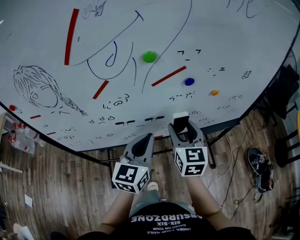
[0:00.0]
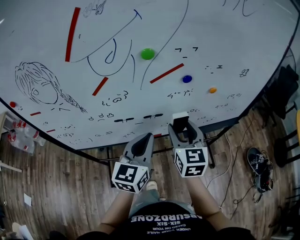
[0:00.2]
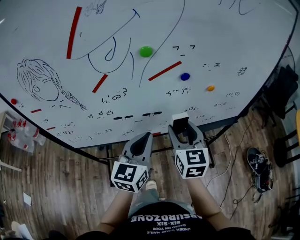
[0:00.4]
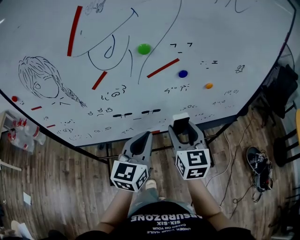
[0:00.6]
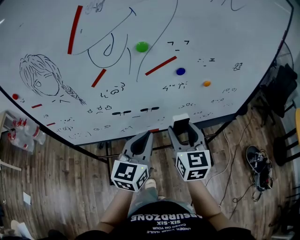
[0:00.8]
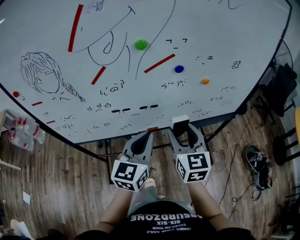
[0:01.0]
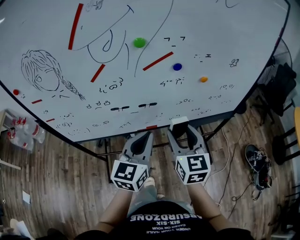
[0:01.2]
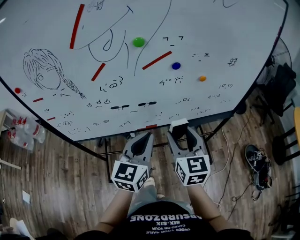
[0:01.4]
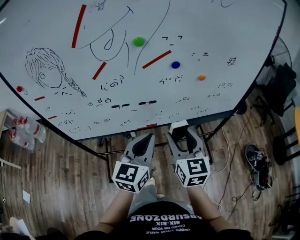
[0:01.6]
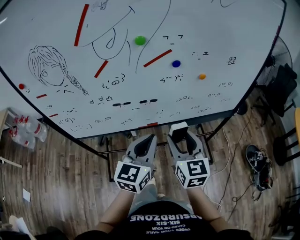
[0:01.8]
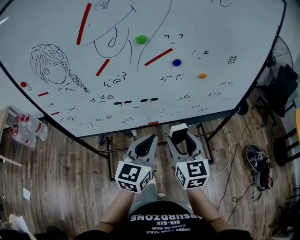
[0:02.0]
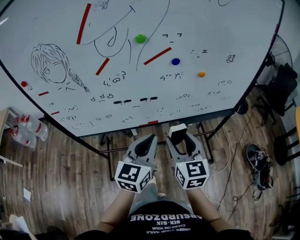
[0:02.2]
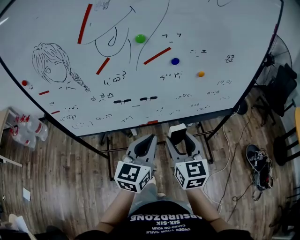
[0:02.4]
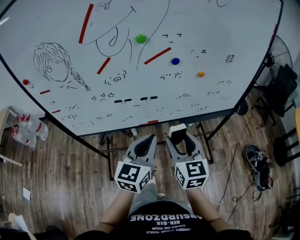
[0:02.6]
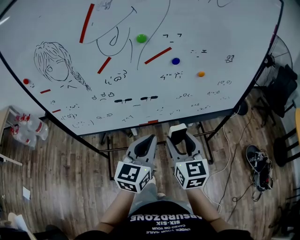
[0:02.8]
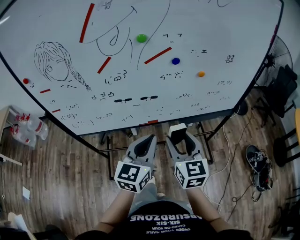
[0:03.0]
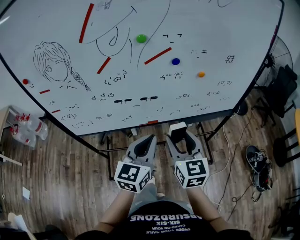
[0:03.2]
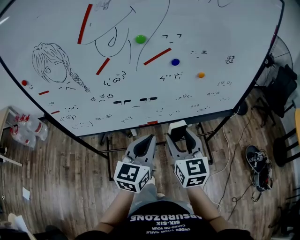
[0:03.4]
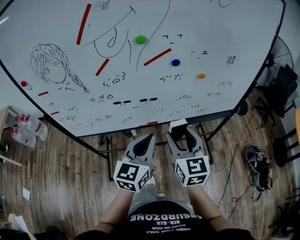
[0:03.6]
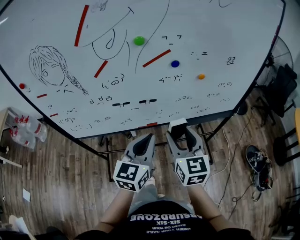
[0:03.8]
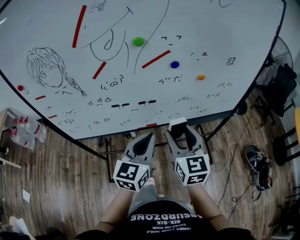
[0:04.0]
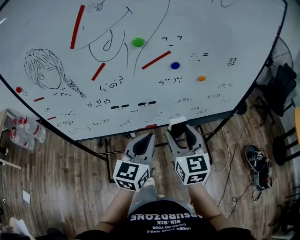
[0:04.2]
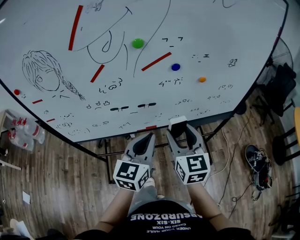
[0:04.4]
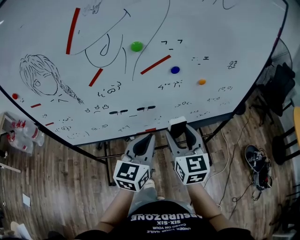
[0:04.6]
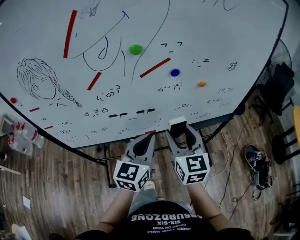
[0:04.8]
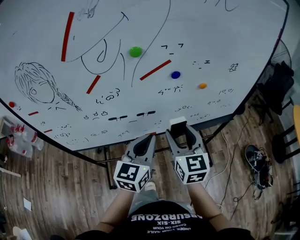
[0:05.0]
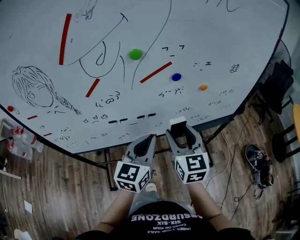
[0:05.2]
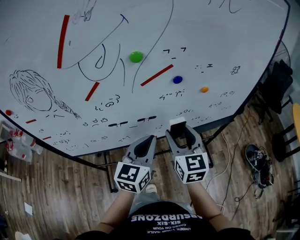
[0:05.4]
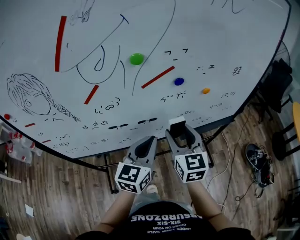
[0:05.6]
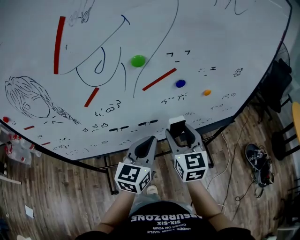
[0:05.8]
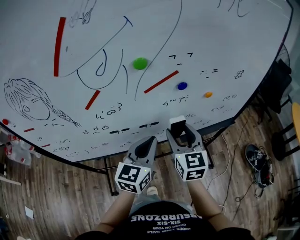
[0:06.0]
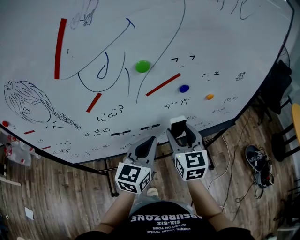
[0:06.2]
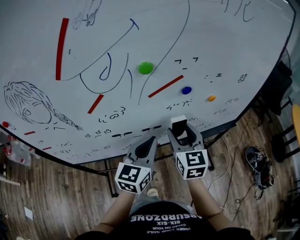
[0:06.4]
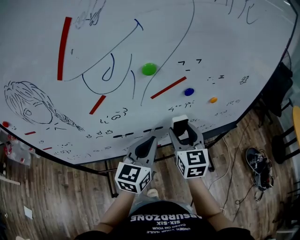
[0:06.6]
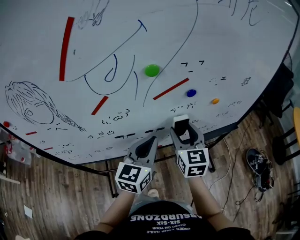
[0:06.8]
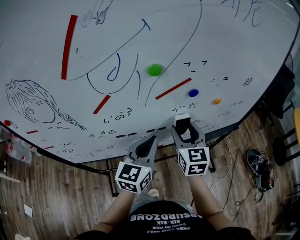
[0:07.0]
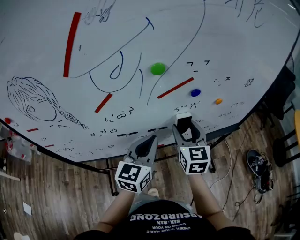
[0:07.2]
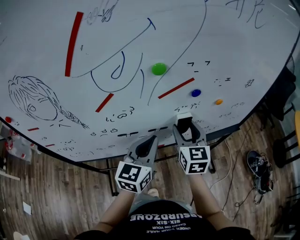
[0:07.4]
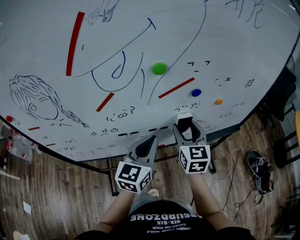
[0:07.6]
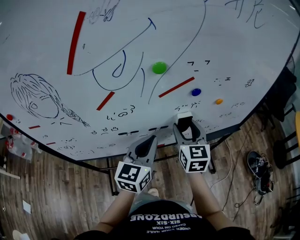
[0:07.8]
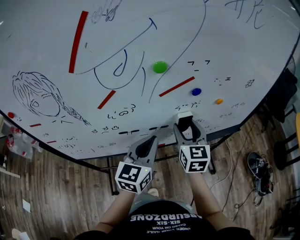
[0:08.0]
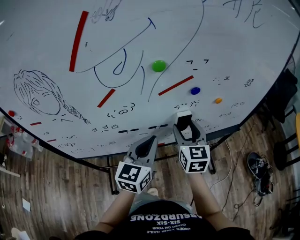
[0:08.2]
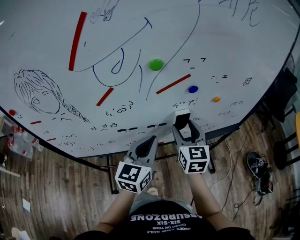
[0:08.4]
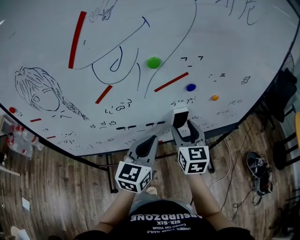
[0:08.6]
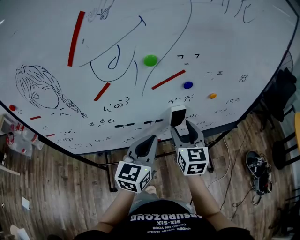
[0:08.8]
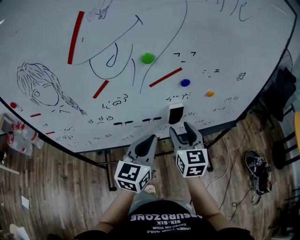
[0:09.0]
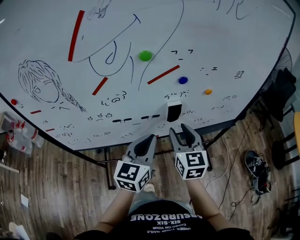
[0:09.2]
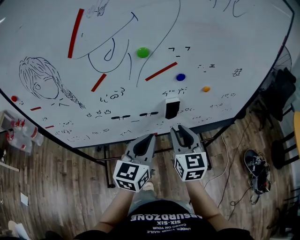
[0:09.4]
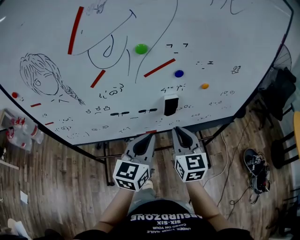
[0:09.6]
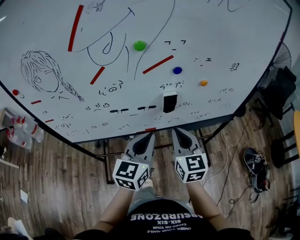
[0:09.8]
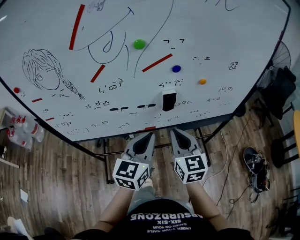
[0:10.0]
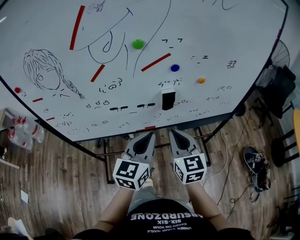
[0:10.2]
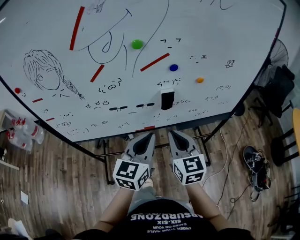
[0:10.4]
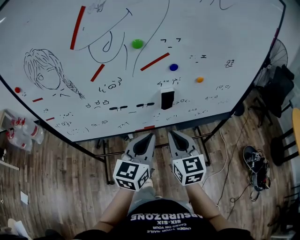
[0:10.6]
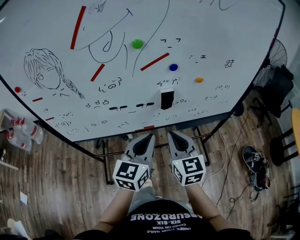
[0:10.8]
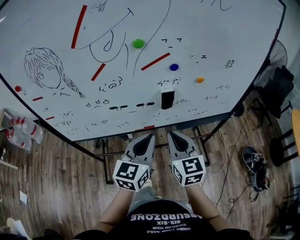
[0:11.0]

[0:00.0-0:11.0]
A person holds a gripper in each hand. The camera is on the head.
0:00.0 to 0:01.6: Both grippers move backward, approximately 10 cm.
0:01.6 to 0:03.2: The grippers move only a little.
0:03.2 to 0:04.8: The two grippers go some 10 cm forward.
0:04.8 to 0:06.2: Both grippers travel together forward, roughly 5 cm.
0:06.2 to 0:07.8: The grippers make only small movements.
0:07.8 to 0:09.4: The left gripper shifts about 5 cm backward. Meanwhile the right gripper heads backward, covering approximately 10 cm, and closes.
0:09.4 to 0:11.0: The left gripper shifts by roughly 5 cm, while the right gripper heads backward, covering approximately 5 cm, and closes.

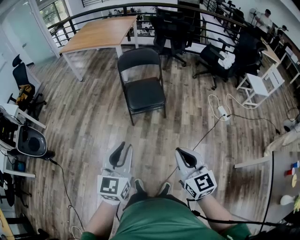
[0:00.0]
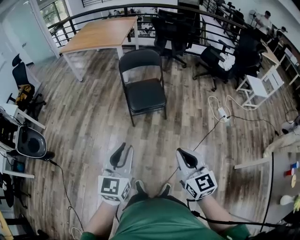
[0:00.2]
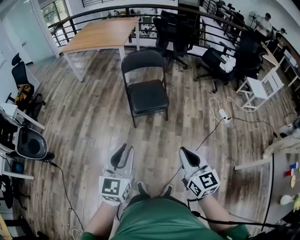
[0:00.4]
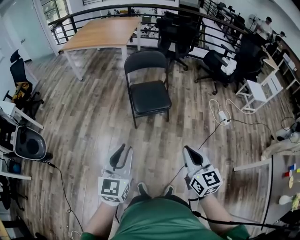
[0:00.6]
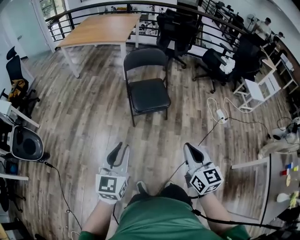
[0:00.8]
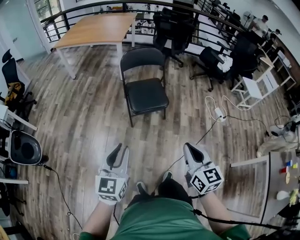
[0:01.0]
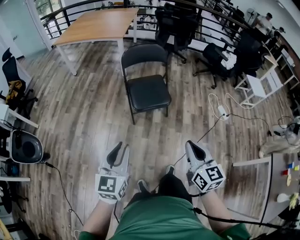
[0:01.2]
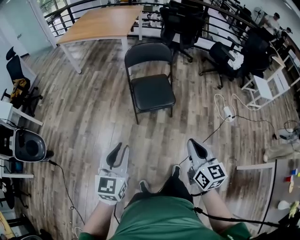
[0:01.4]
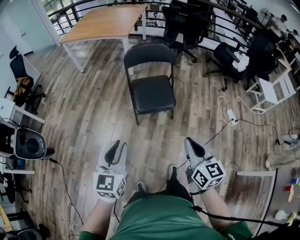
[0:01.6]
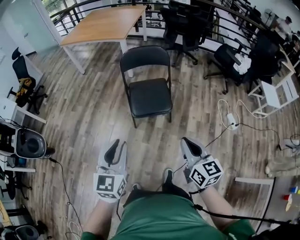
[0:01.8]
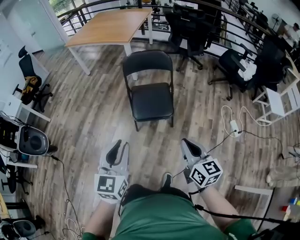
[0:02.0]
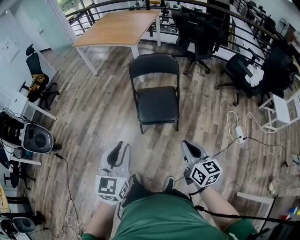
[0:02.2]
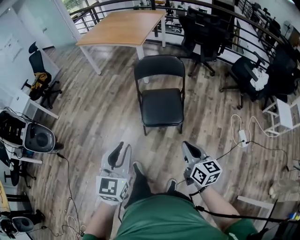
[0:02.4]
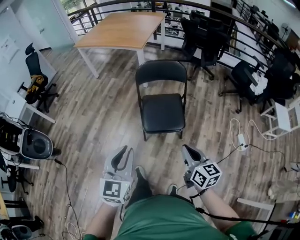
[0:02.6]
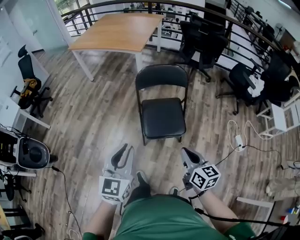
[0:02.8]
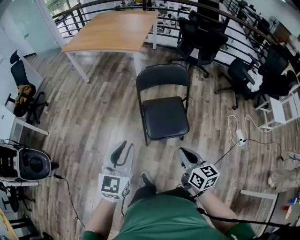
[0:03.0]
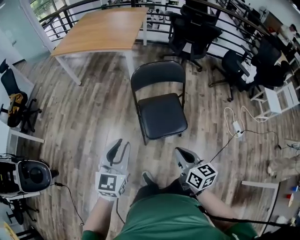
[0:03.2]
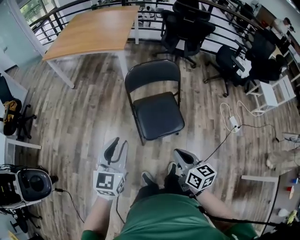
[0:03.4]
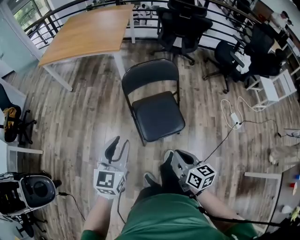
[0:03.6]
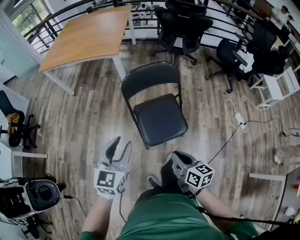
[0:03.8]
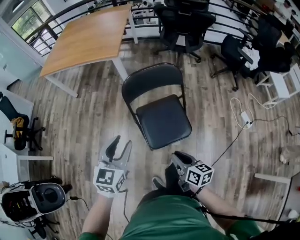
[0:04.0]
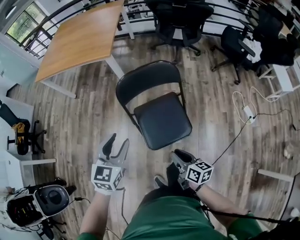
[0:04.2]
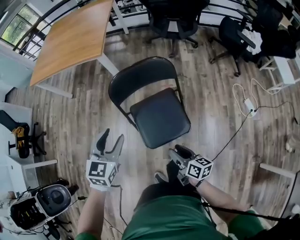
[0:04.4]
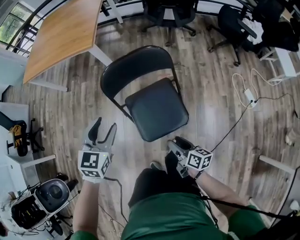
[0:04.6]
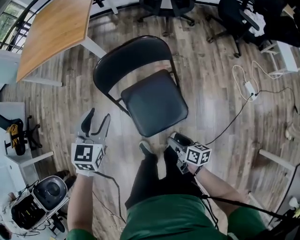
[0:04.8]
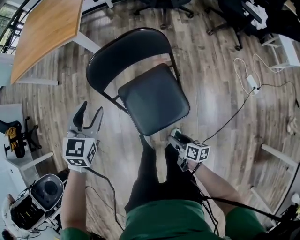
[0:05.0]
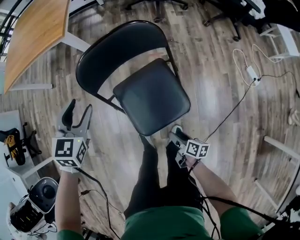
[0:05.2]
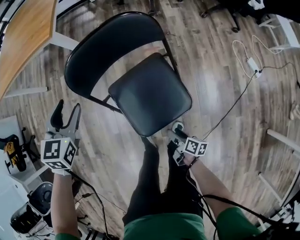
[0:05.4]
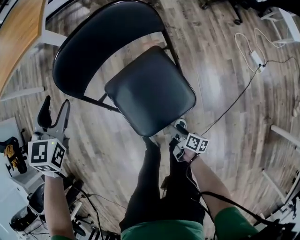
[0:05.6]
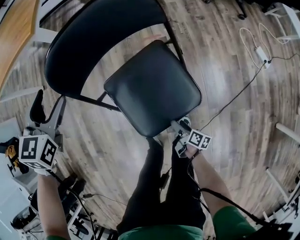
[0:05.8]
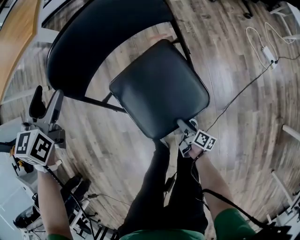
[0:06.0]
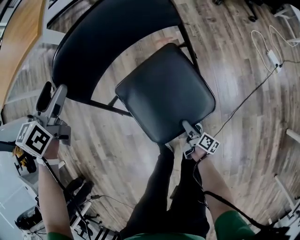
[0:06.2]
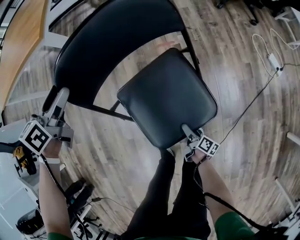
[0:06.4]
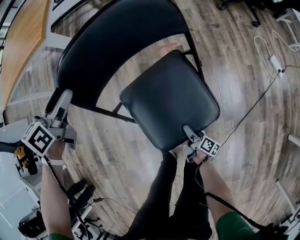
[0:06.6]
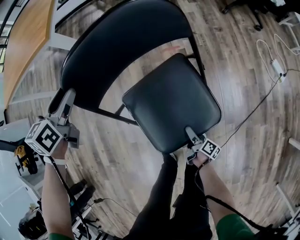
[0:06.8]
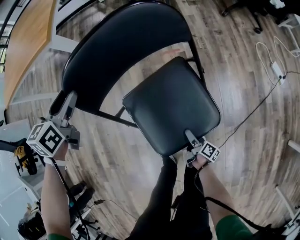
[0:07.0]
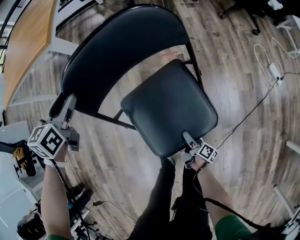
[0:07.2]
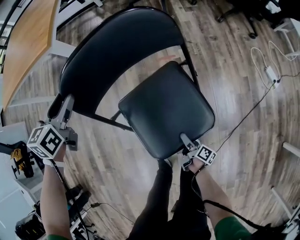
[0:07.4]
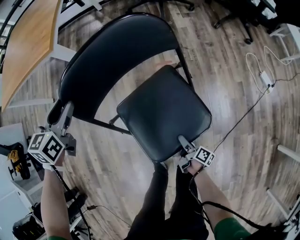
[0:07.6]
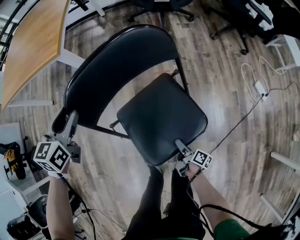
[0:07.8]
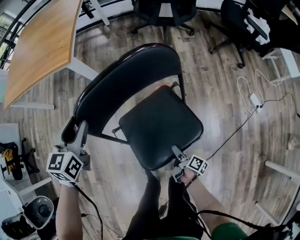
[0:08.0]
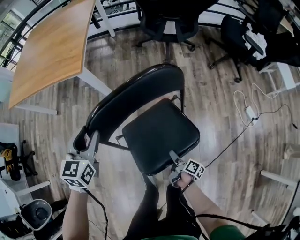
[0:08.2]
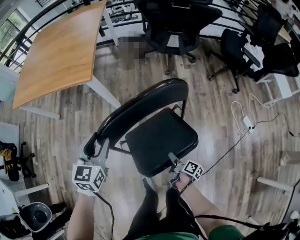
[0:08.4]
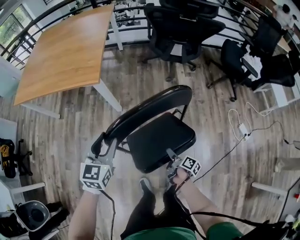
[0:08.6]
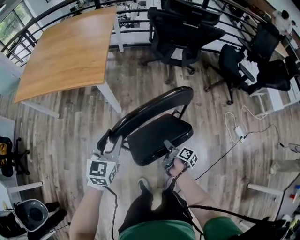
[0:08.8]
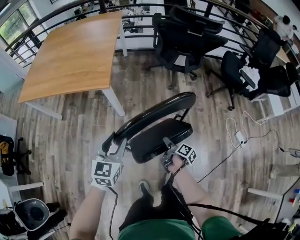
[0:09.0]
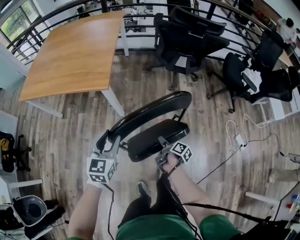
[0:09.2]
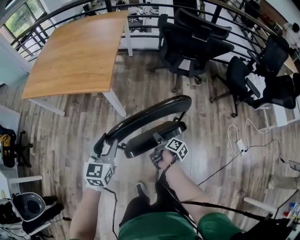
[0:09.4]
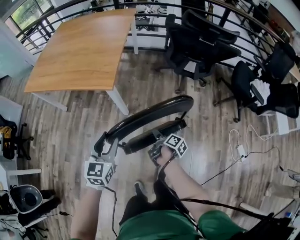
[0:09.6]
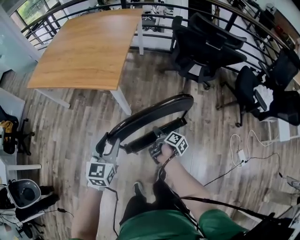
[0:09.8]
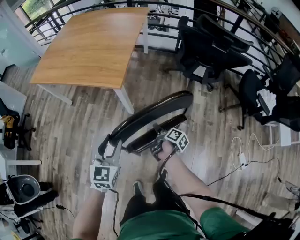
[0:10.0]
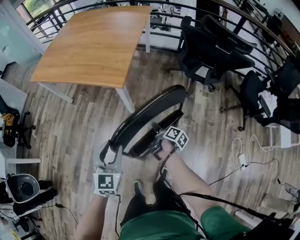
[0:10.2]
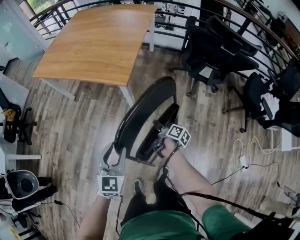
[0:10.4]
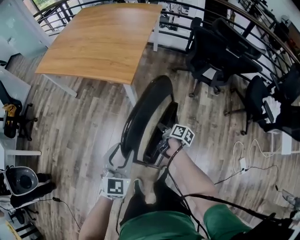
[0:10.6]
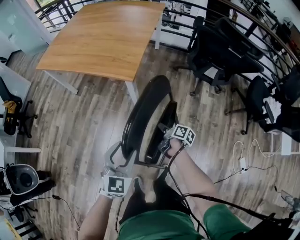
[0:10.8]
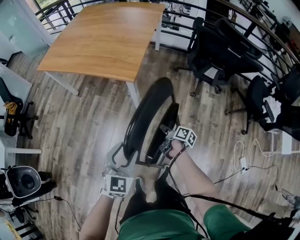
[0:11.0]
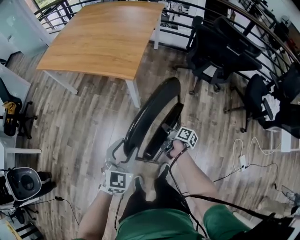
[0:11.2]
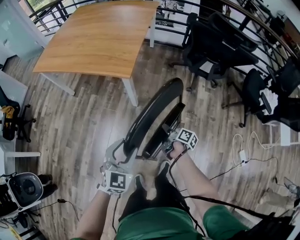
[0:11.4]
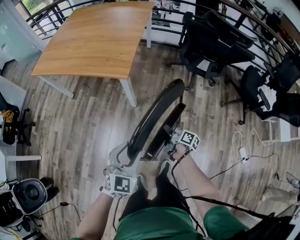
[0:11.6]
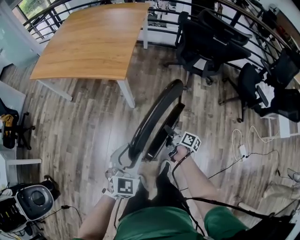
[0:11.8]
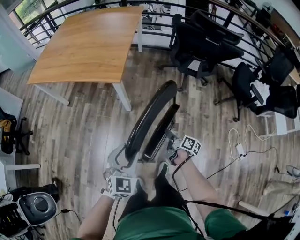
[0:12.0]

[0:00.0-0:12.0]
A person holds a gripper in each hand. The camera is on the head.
0:00.0 to 0:01.6: The right gripper travels forward by about 20 cm. The left gripper heads forward and to the left, covering approximately 15 cm.
0:01.6 to 0:03.0: Both grippers travel together forward, approximately 25 cm.
0:03.0 to 0:04.4: The right gripper heads downward and forward, covering some 25 cm, rotates approximately 30 degrees, and opens its fingers. Meanwhile the left gripper goes roughly 30 cm forward, changes its angle by approximately 20 degrees, and opens up.
0:04.4 to 0:06.0: The left gripper goes roughly 30 cm forward and downward. The right gripper goes some 40 cm downward, changes its angle by some 40 degrees, and opens.
0:06.0 to 0:07.6: The right gripper moves forward, approximately 5 cm. Meanwhile the left gripper ends up about 5 cm from where it was, and closes.
0:07.6 to 0:09.0: The left gripper heads upward, covering about 15 cm. The right gripper shifts some 35 cm upward and forward.
0:09.0 to 0:10.4: The right gripper heads forward and to the left, covering approximately 20 cm, and swivels approximately 20 degrees.
0:10.4 to 0:12.0: The left gripper shifts about 5 cm backward. Meanwhile the right gripper travels backward and to the right by roughly 10 cm.

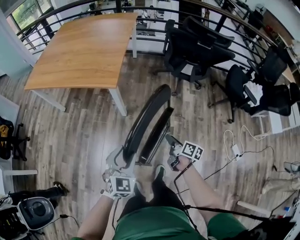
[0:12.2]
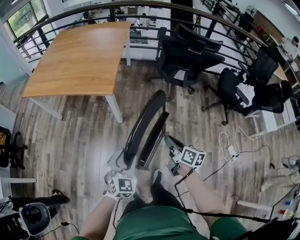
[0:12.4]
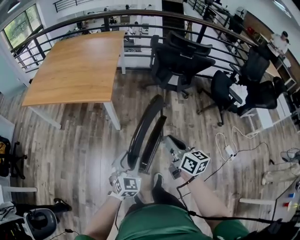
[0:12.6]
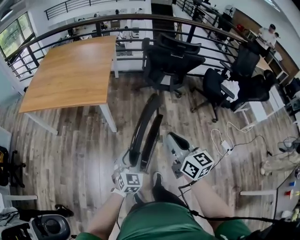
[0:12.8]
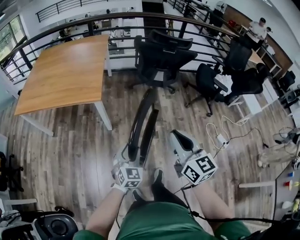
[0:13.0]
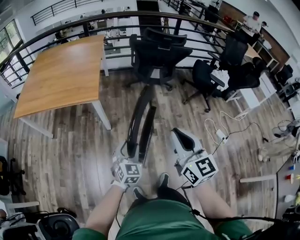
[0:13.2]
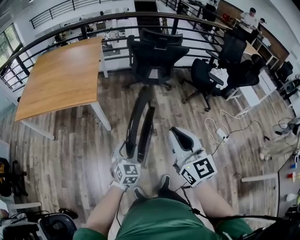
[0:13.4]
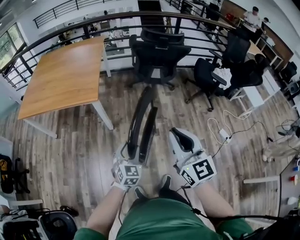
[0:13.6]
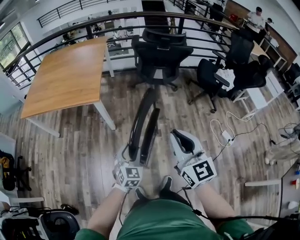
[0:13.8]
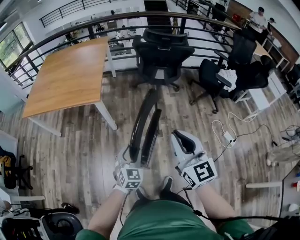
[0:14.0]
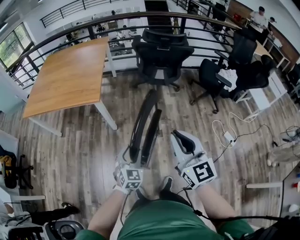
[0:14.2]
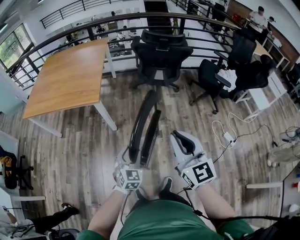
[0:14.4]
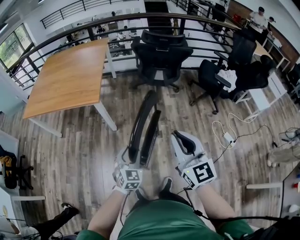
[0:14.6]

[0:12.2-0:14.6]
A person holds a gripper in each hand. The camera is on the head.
0:12.2 to 0:13.4: The left gripper moves backward and to the right, some 10 cm; the right gripper goes some 40 cm upward and backward, and rotates around the line of its fingers by roughly 60 degrees, counterclockwise from behind.
0:13.4 to 0:14.6: The right gripper is displaced to the right by about 5 cm. Meanwhile the left gripper ends up about 5 cm from where it was.
